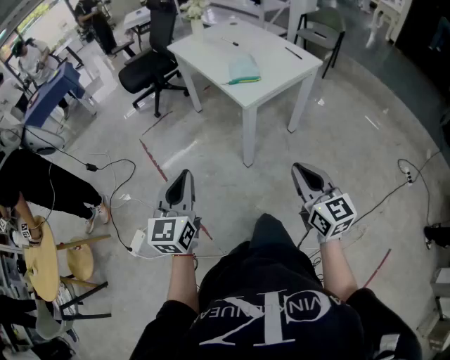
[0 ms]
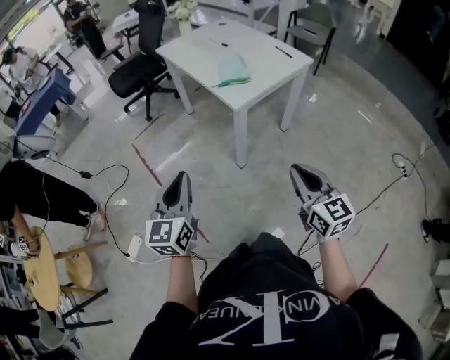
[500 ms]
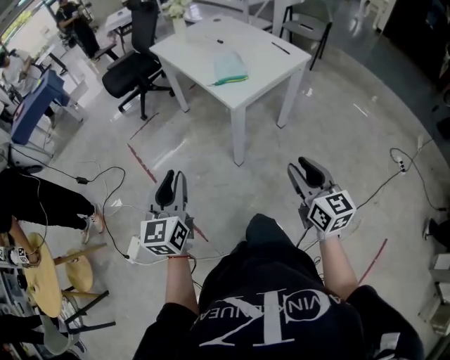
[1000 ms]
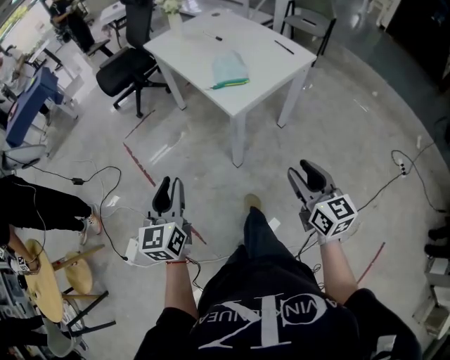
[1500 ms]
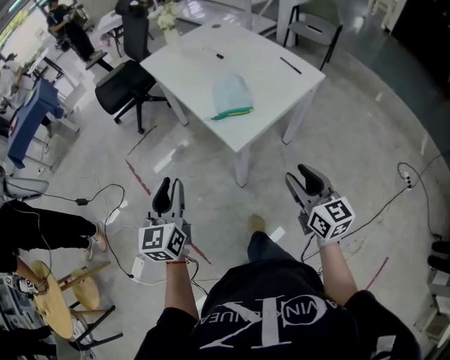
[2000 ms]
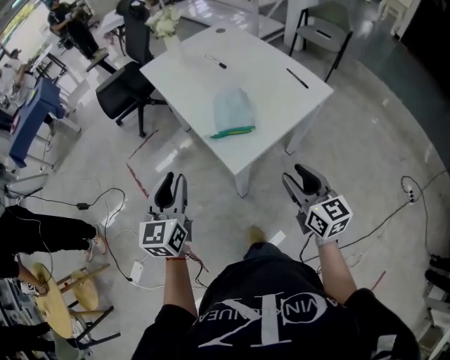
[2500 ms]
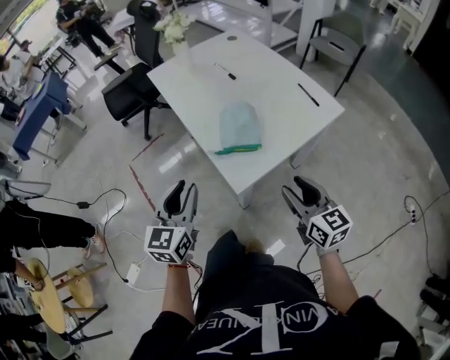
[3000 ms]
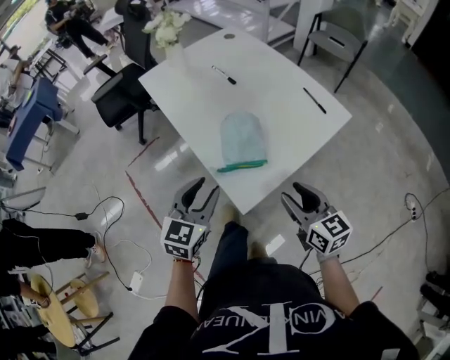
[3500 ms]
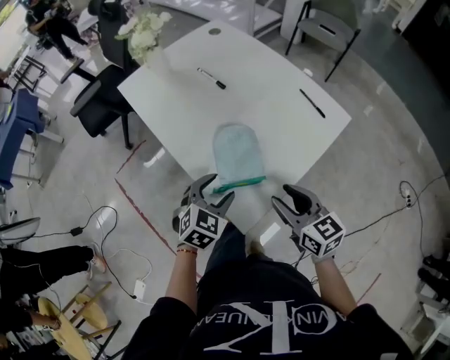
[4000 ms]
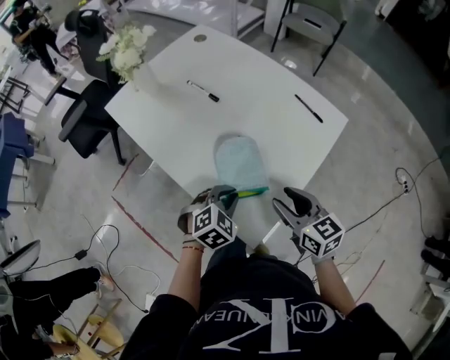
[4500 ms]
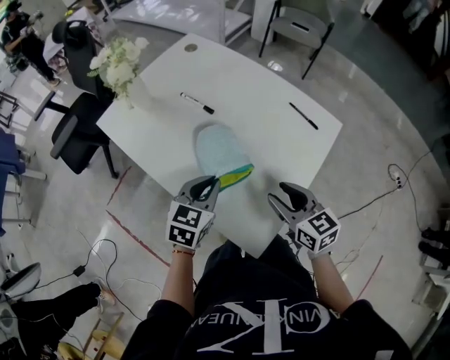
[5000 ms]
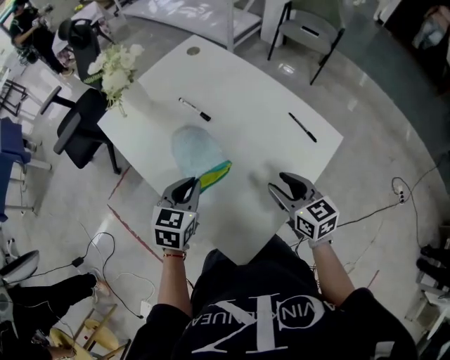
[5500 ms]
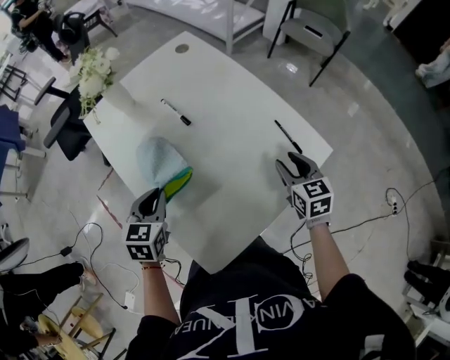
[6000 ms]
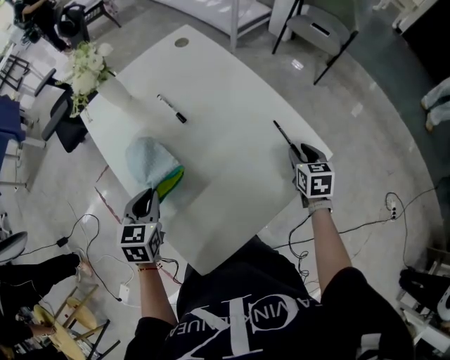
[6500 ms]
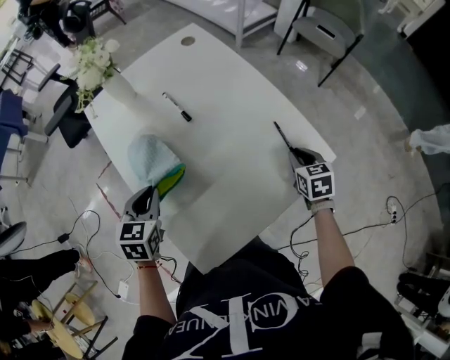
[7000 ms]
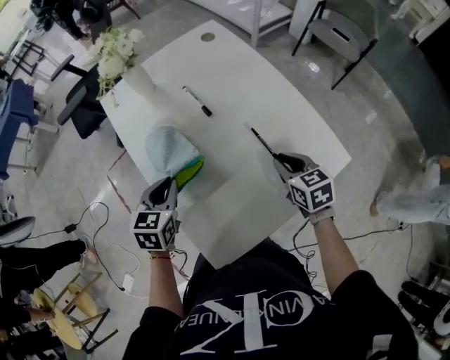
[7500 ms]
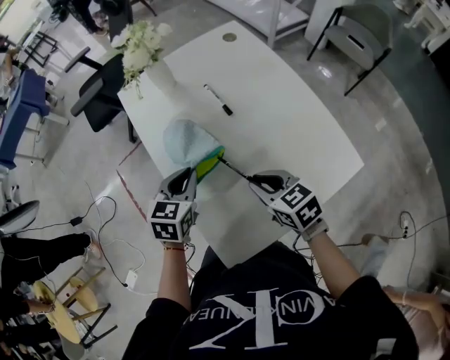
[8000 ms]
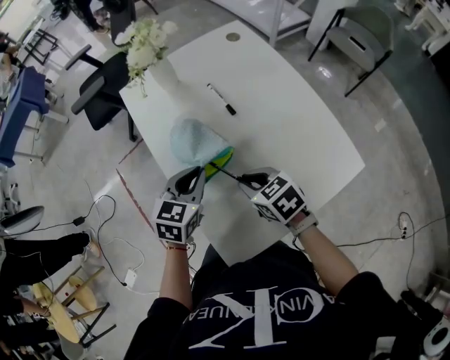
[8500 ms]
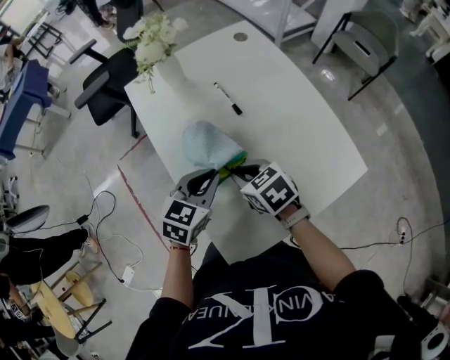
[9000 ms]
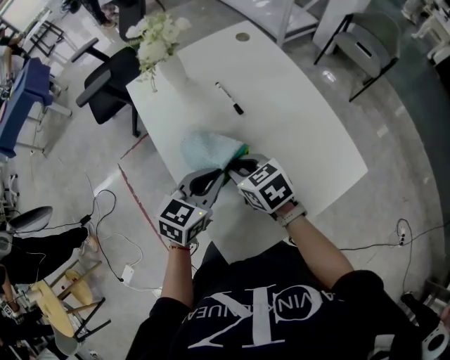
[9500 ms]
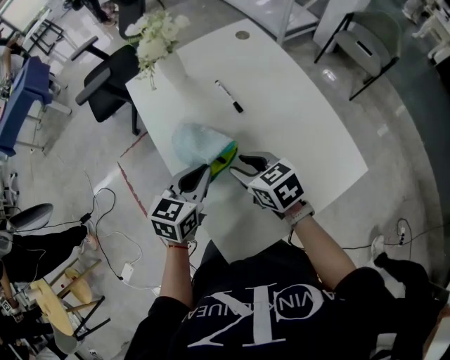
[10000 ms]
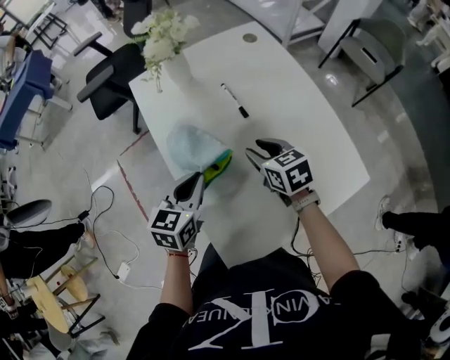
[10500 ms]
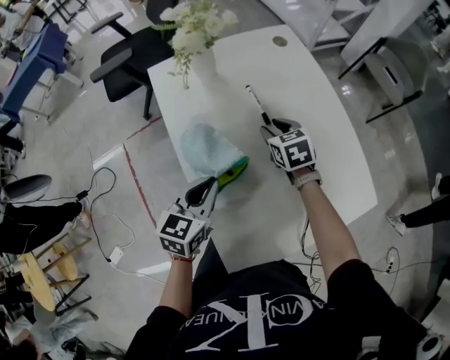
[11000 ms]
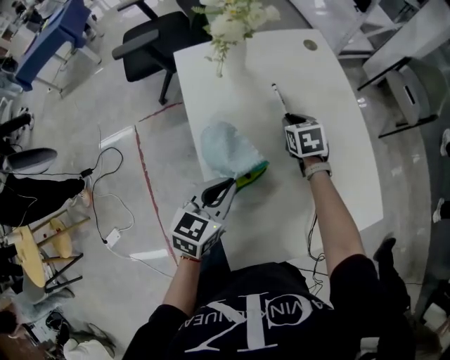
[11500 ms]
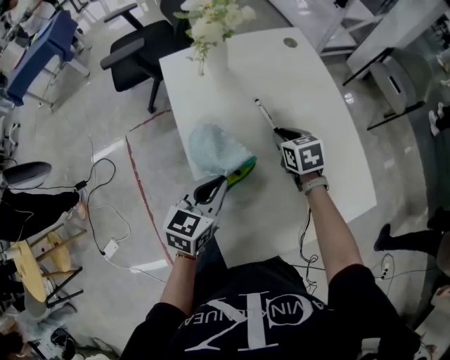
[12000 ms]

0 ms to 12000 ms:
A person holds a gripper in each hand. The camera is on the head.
0 ms to 2000 ms: Both grippers travel together forward, roughly 25 cm. The left gripper opens its fingers; the right gripper opens its fingers.
2000 ms to 4000 ms: The right gripper heads forward, covering some 25 cm, while the left gripper moves forward, to the right and downward, approximately 35 cm, angles its fingers downward, by roughly 30 degrees, and opens up.
4000 ms to 6000 ms: The left gripper moves forward and to the left, approximately 15 cm, changes its angle by approximately 30 degrees, and closes up, while the right gripper heads forward and to the right, covering approximately 30 cm, and rotates about 20 degrees.
6000 ms to 8000 ms: The right gripper ends up about 20 cm from where it was, turns by about 40 degrees, and closes its fingers.
8000 ms to 10000 ms: The right gripper moves forward and to the left, some 10 cm, and opens its fingers.
10000 ms to 12000 ms: The right gripper goes approximately 15 cm forward, downward and to the right.

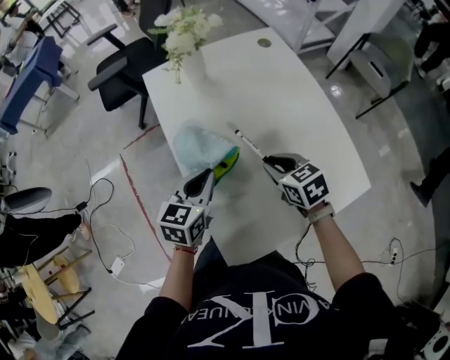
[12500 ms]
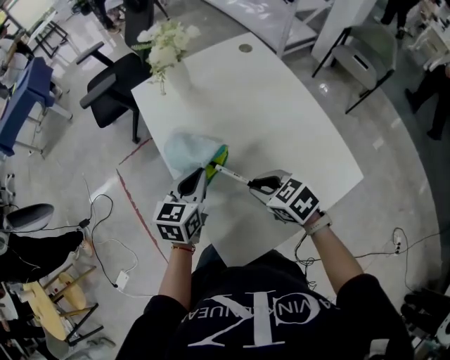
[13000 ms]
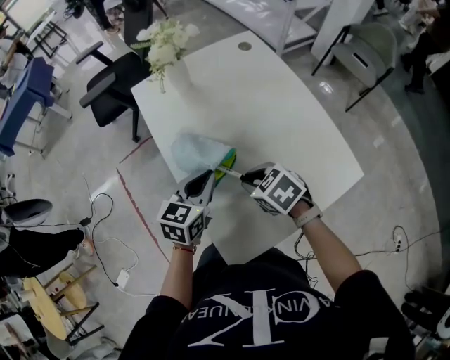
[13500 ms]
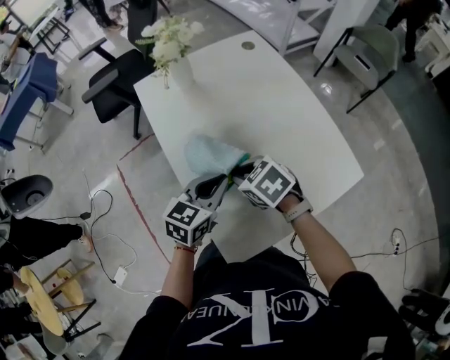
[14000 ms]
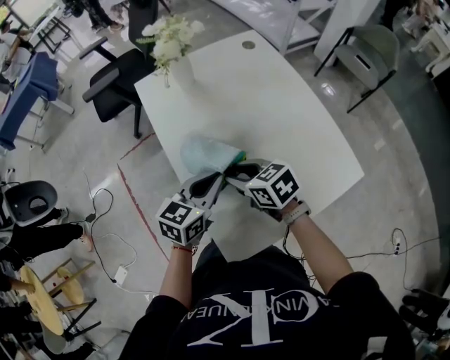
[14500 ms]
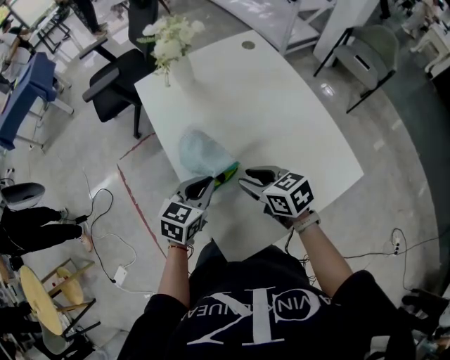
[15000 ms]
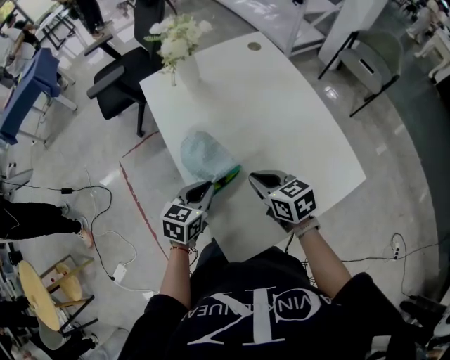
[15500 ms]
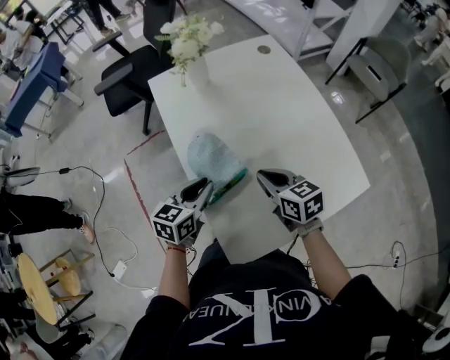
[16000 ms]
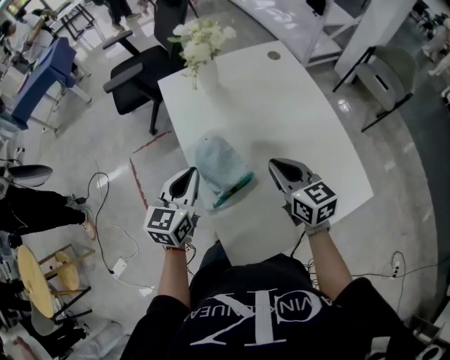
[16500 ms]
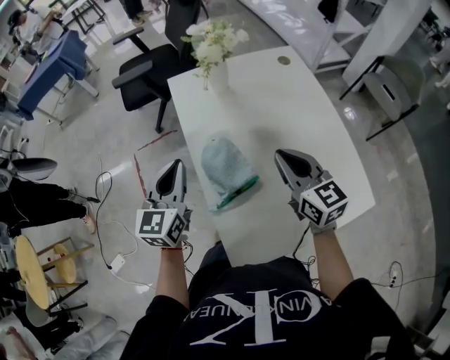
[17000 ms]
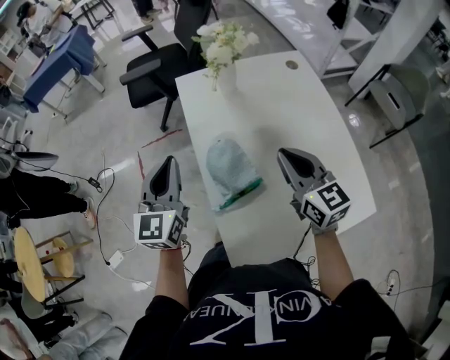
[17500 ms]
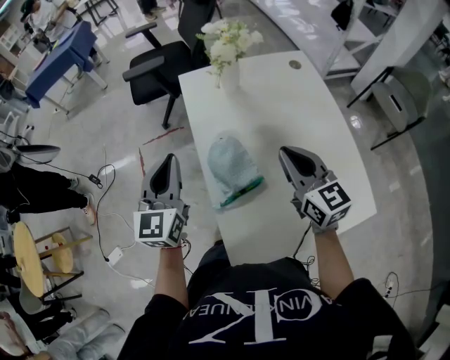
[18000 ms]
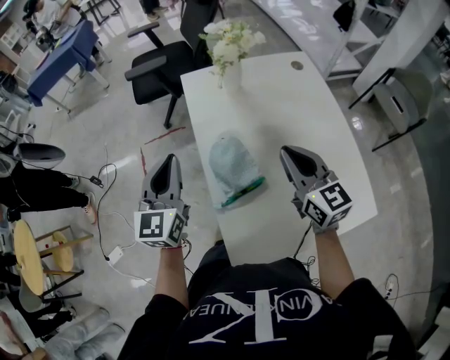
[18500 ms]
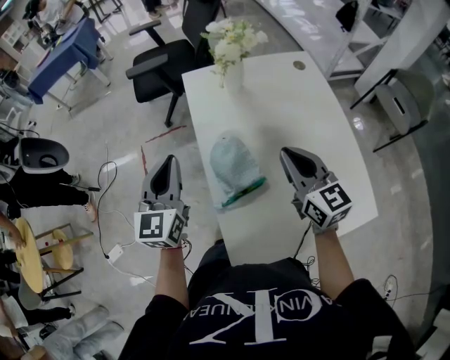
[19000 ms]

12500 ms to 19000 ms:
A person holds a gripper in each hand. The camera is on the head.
12500 ms to 14500 ms: The right gripper is displaced to the left by approximately 10 cm. Meanwhile the left gripper changes place by some 5 cm.
14500 ms to 17000 ms: The left gripper moves to the left and upward, about 15 cm, and rotates roughly 40 degrees. Meanwhile the right gripper heads upward and to the right, covering roughly 15 cm, changes its angle by roughly 30 degrees, and closes.
17000 ms to 19000 ms: The grippers move only a little.

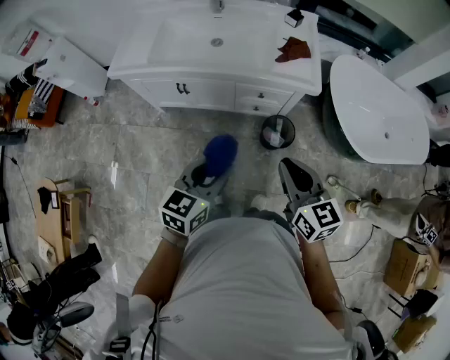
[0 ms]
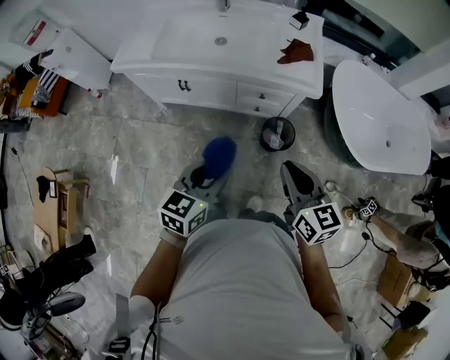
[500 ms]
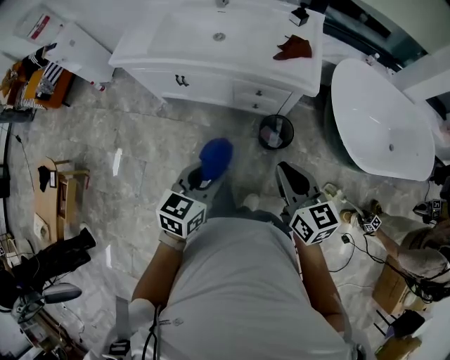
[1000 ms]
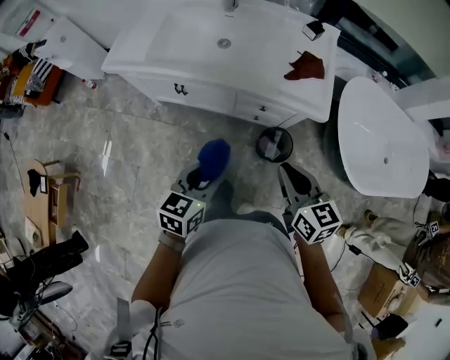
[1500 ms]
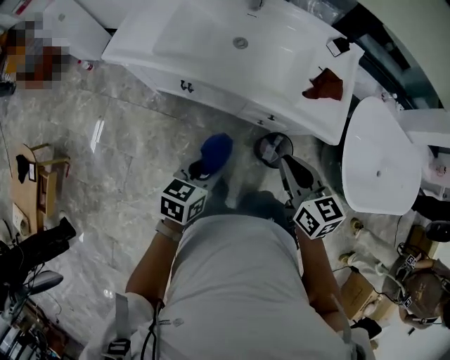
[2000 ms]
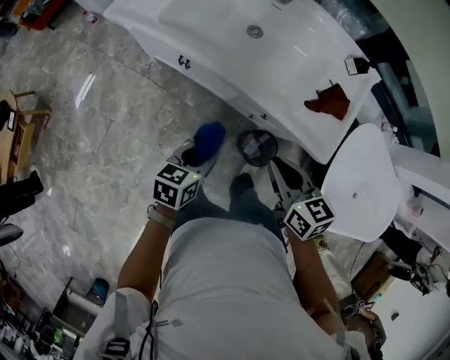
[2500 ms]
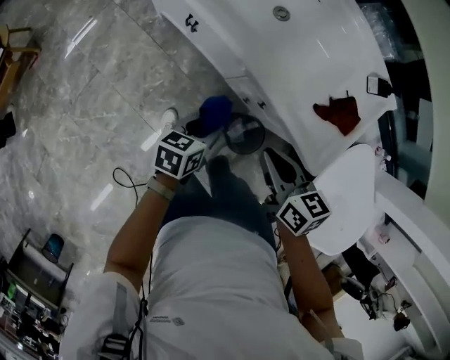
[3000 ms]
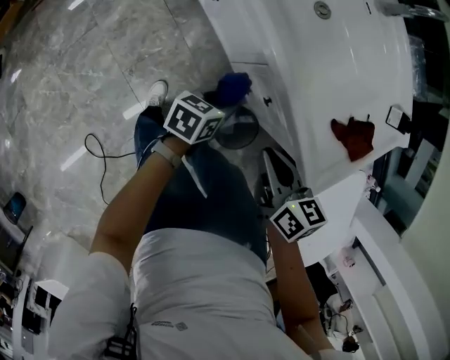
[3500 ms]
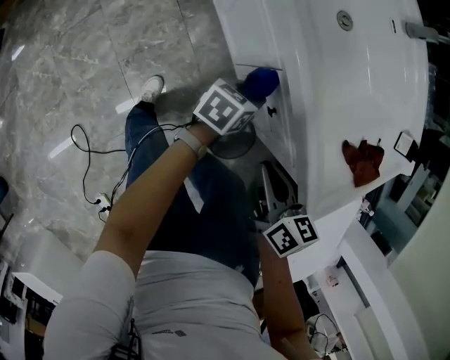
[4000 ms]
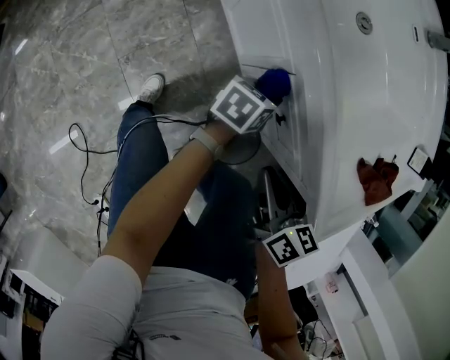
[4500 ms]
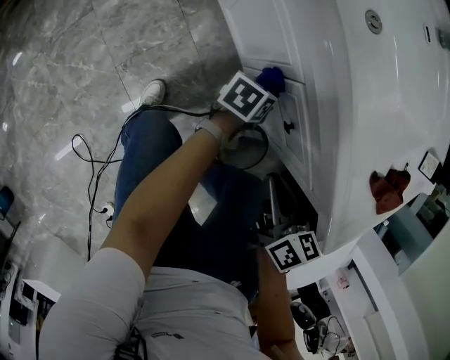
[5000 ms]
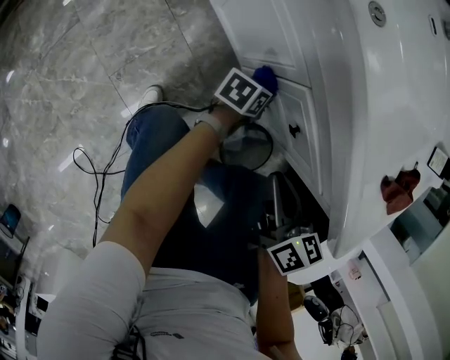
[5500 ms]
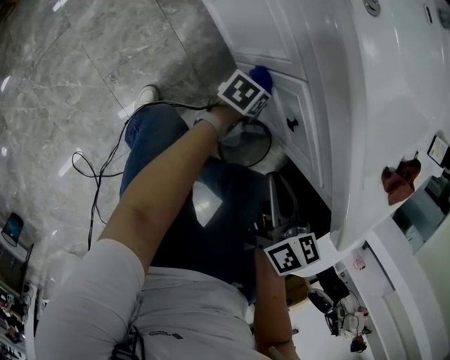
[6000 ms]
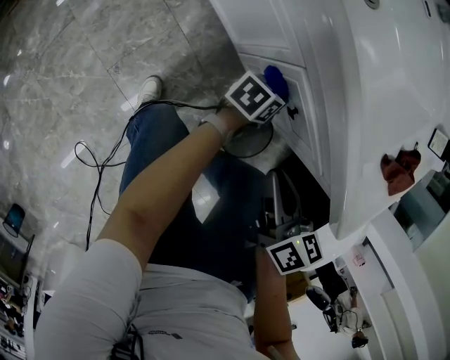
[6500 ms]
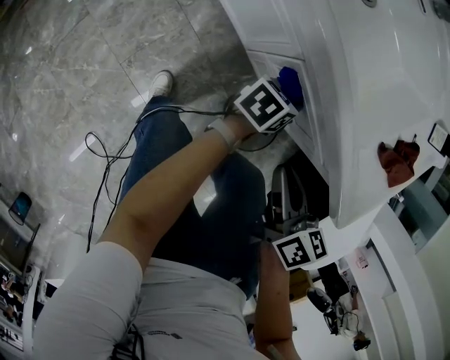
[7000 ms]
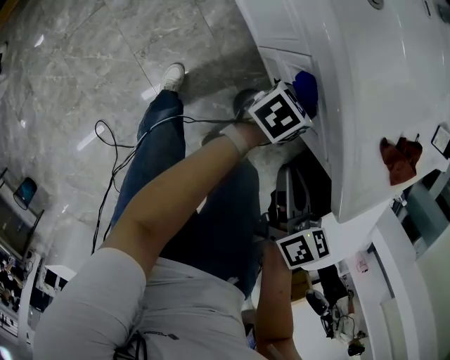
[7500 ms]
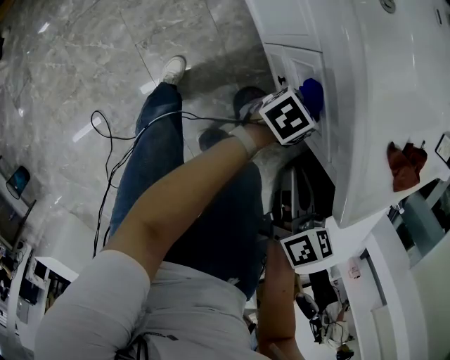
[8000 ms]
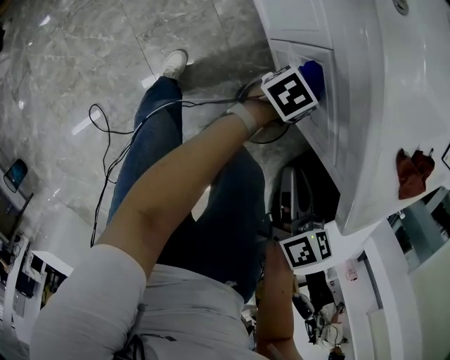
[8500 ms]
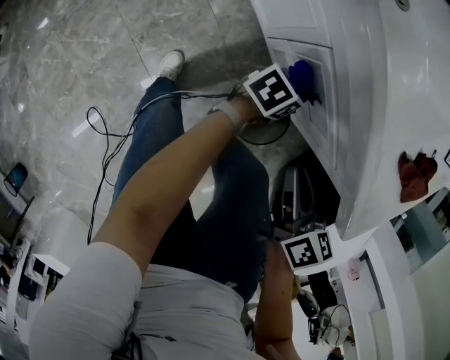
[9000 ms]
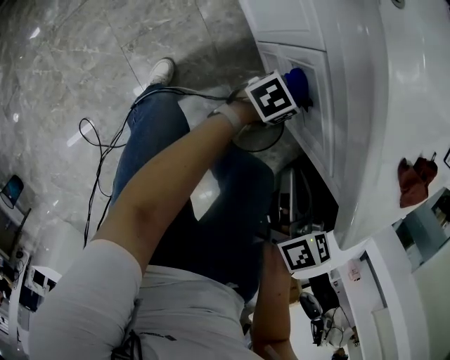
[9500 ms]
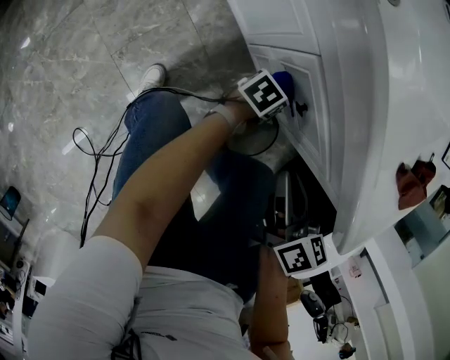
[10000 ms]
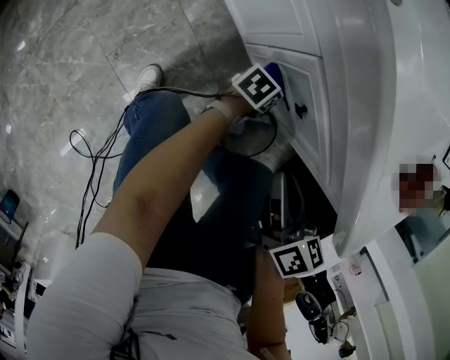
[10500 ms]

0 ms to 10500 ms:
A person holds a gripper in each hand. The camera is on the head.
0 ms to 2000 ms: The right gripper travels forward by some 20 cm, while the left gripper travels forward and downward by some 20 cm.
2000 ms to 4000 ms: The two grippers go about 25 cm downward. The right gripper turns by about 40 degrees. The left gripper swivels roughly 30 degrees.
4000 ms to 6500 ms: The left gripper goes approximately 15 cm downward and to the right, while the right gripper moves downward, roughly 5 cm.
8500 ms to 10500 ms: The left gripper heads downward, covering approximately 15 cm. Meanwhile the right gripper ends up some 5 cm from where it was.
